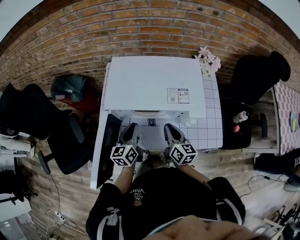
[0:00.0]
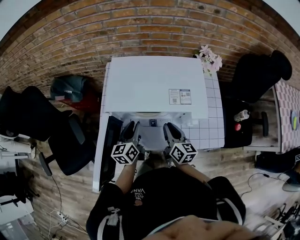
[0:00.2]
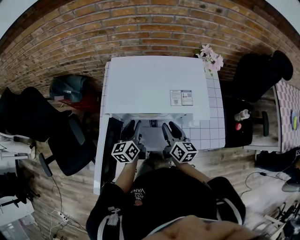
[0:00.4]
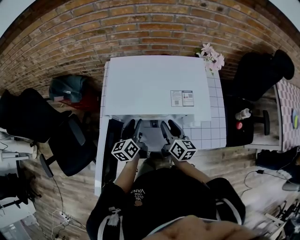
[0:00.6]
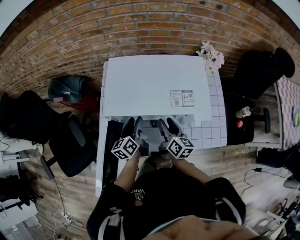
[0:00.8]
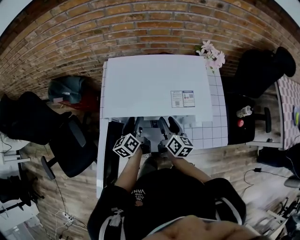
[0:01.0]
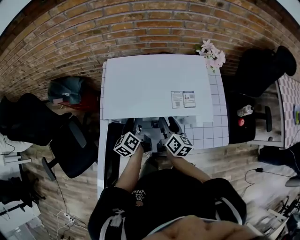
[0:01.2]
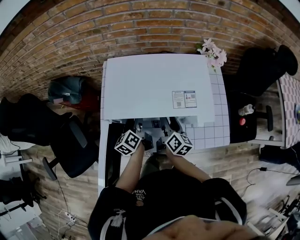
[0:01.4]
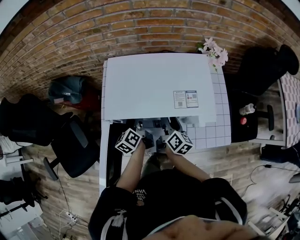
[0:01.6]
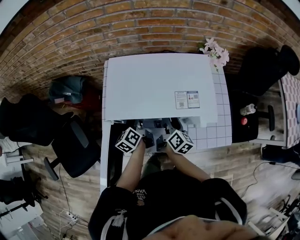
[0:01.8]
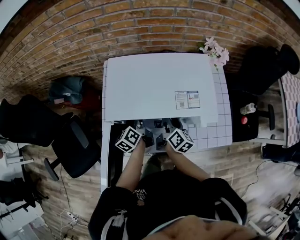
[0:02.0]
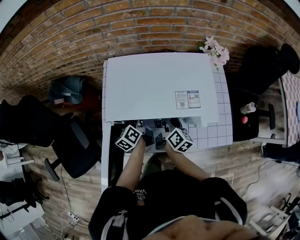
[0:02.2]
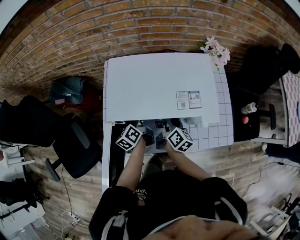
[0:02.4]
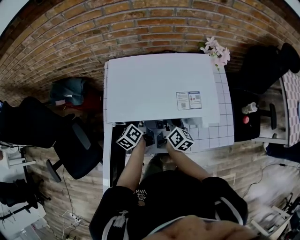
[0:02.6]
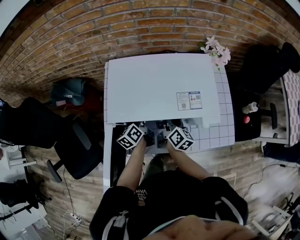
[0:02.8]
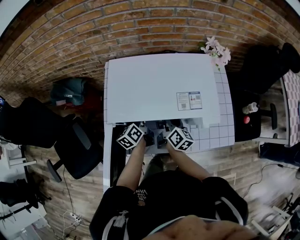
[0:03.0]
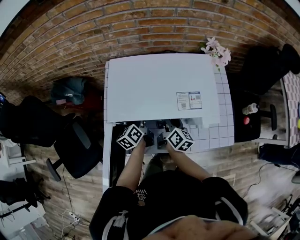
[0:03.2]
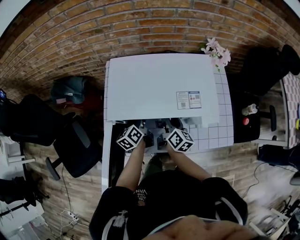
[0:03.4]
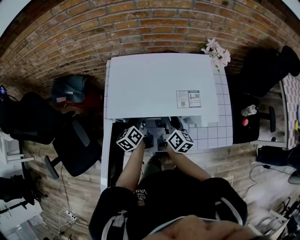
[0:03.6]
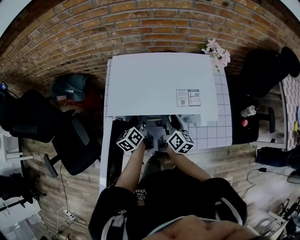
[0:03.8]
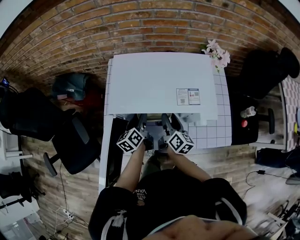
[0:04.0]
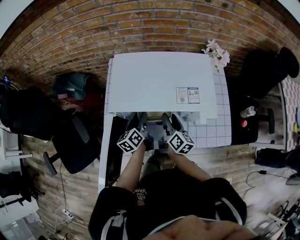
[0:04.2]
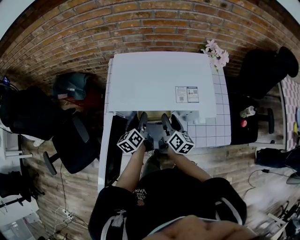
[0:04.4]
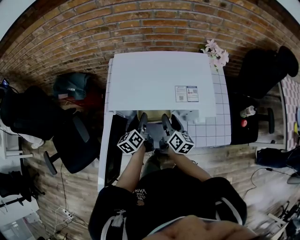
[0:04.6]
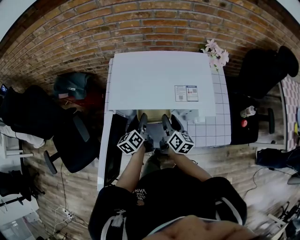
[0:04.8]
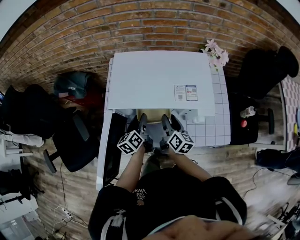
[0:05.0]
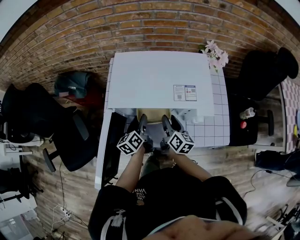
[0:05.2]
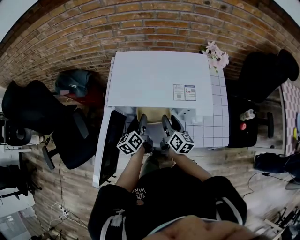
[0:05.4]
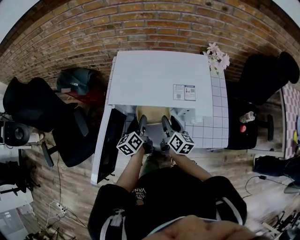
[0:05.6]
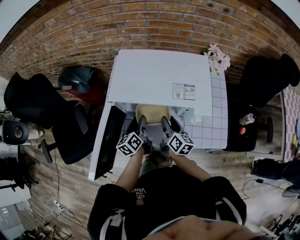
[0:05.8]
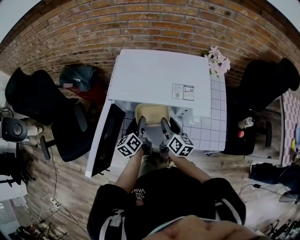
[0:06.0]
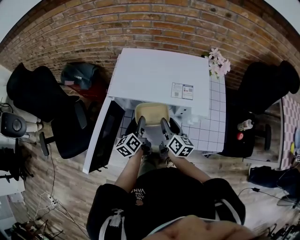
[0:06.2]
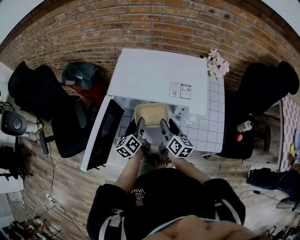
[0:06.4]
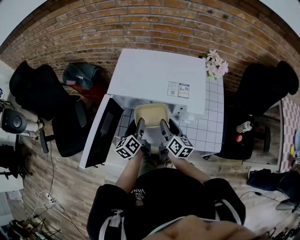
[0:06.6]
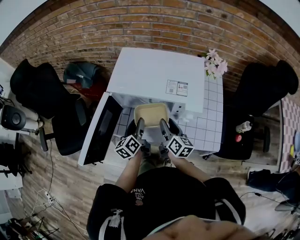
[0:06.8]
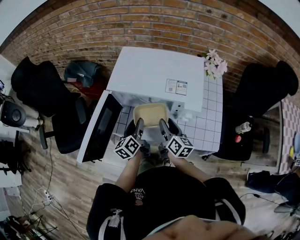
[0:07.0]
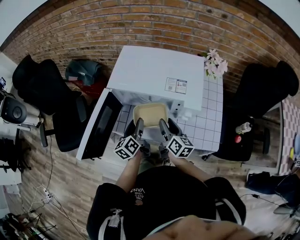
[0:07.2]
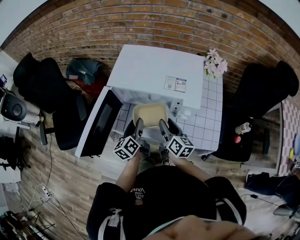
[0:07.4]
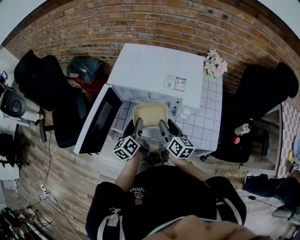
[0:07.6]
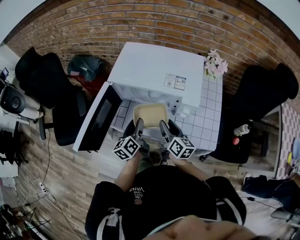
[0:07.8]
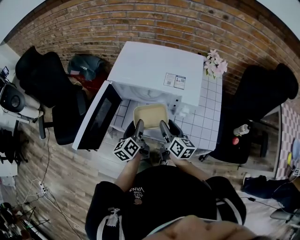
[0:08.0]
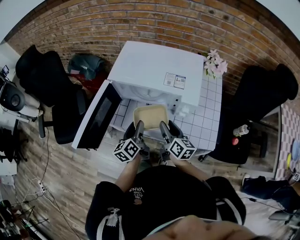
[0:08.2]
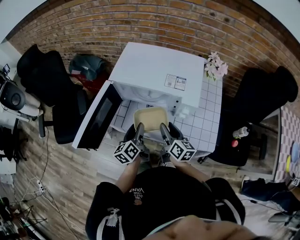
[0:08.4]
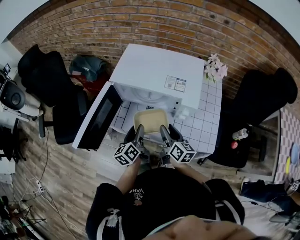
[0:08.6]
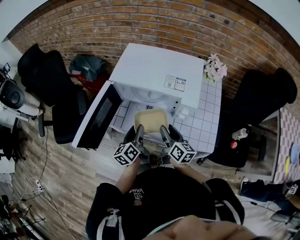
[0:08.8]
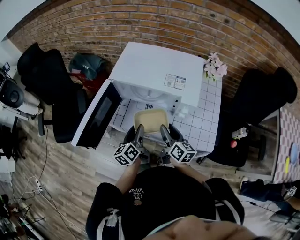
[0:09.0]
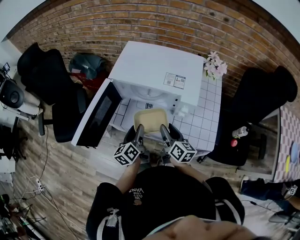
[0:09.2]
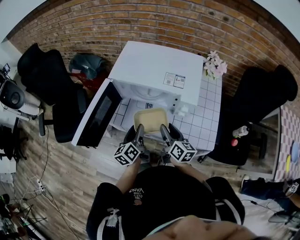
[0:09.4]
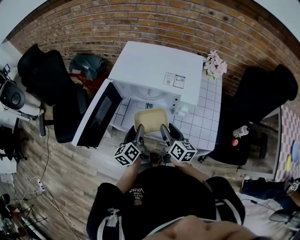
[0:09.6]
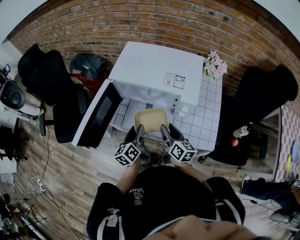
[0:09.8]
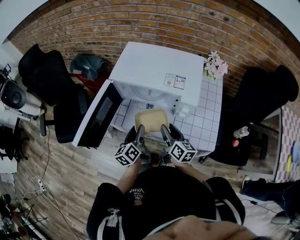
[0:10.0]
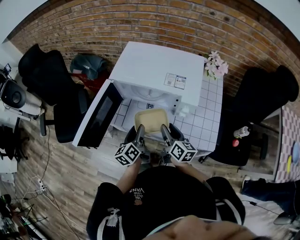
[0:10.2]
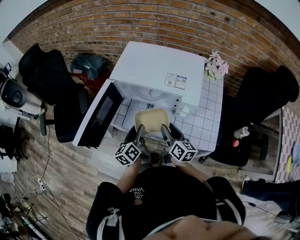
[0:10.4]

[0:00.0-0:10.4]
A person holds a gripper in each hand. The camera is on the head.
0:00.0 to 0:01.4: Both grippers travel together forward, roughly 10 cm. The right gripper turns by approximately 20 degrees, and opens its fingers, while the left gripper rotates roughly 20 degrees, and opens.
0:01.4 to 0:03.0: There are only small adjustments of the grippers.
0:03.0 to 0:04.4: The left gripper moves backward, some 5 cm. The right gripper shifts by about 5 cm.
0:04.4 to 0:06.0: The left gripper is displaced backward by approximately 5 cm.
0:06.0 to 0:07.4: The two grippers go about 5 cm backward.
0:07.4 to 0:09.0: The left gripper is displaced backward by roughly 5 cm.
0:09.0 to 0:10.4: The two grippers keep their place.

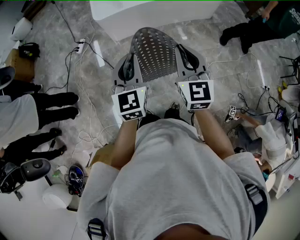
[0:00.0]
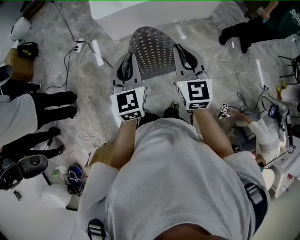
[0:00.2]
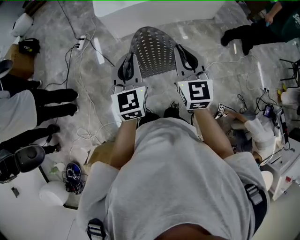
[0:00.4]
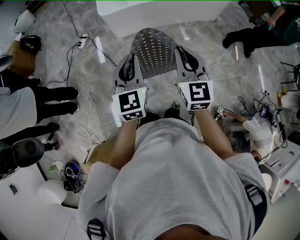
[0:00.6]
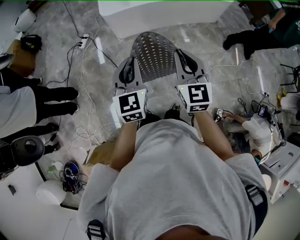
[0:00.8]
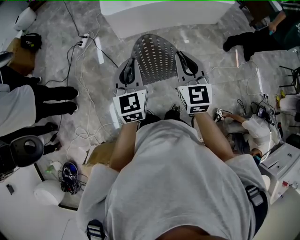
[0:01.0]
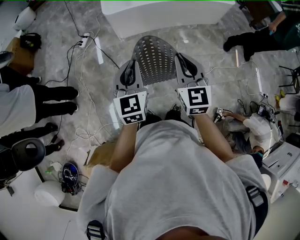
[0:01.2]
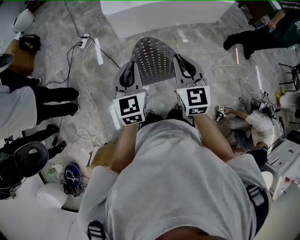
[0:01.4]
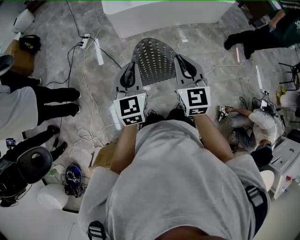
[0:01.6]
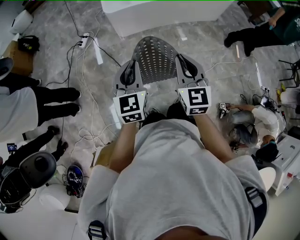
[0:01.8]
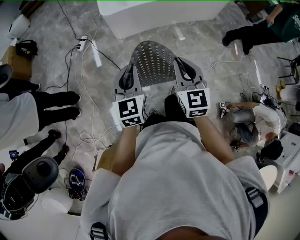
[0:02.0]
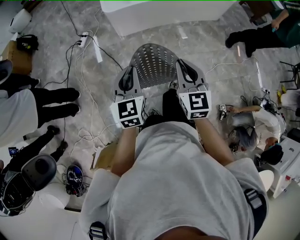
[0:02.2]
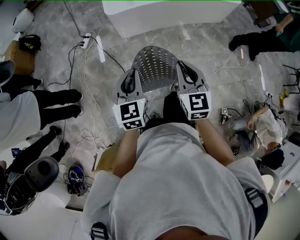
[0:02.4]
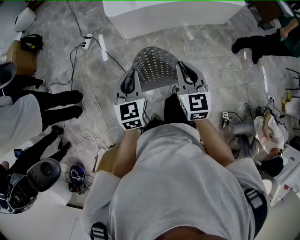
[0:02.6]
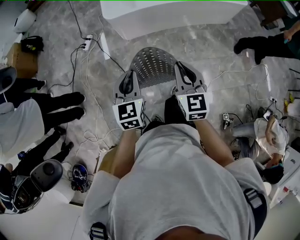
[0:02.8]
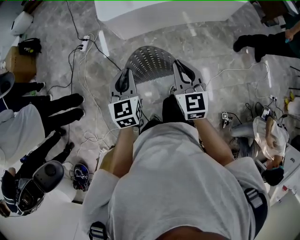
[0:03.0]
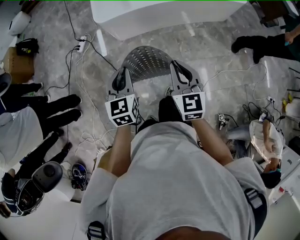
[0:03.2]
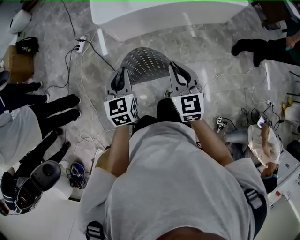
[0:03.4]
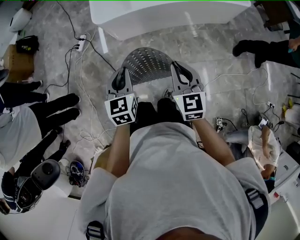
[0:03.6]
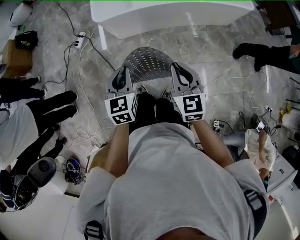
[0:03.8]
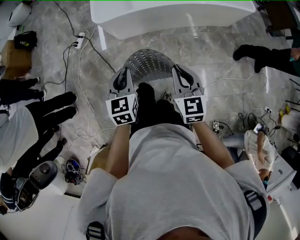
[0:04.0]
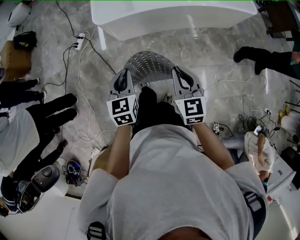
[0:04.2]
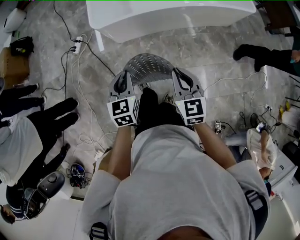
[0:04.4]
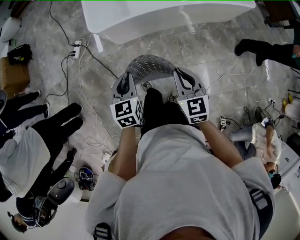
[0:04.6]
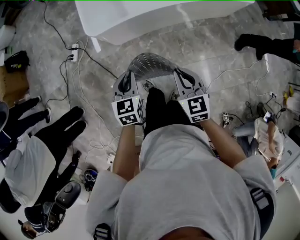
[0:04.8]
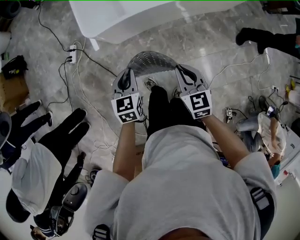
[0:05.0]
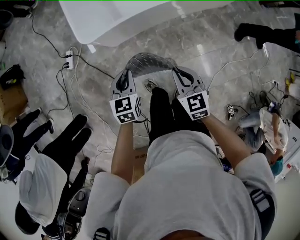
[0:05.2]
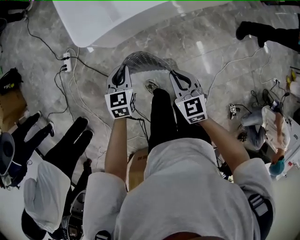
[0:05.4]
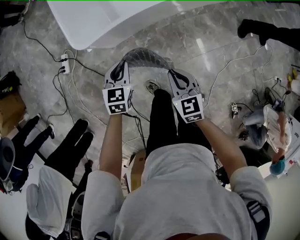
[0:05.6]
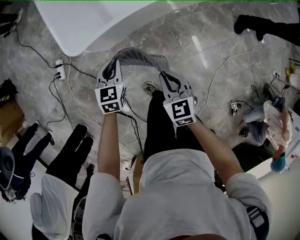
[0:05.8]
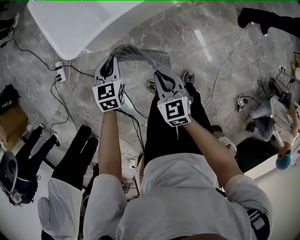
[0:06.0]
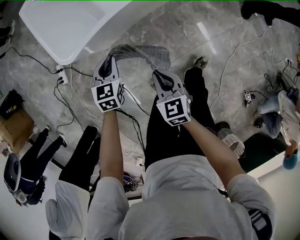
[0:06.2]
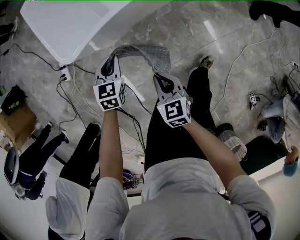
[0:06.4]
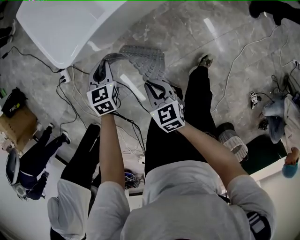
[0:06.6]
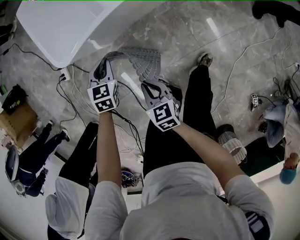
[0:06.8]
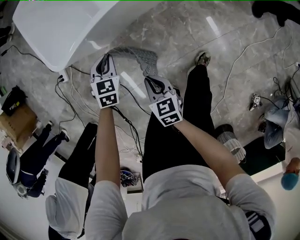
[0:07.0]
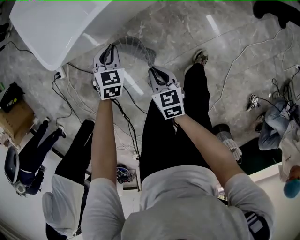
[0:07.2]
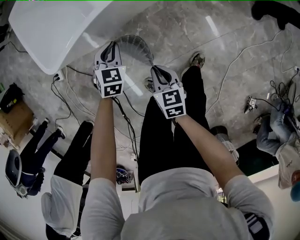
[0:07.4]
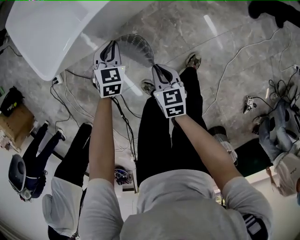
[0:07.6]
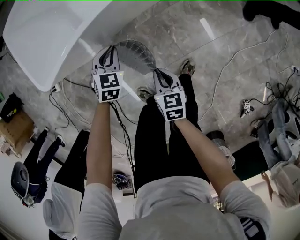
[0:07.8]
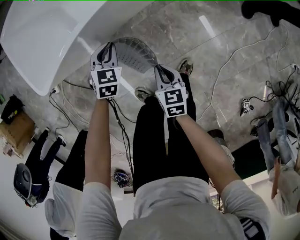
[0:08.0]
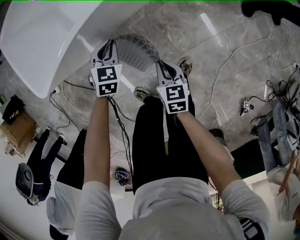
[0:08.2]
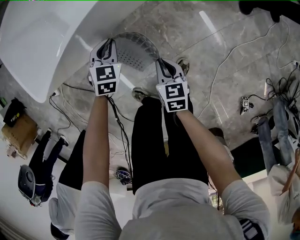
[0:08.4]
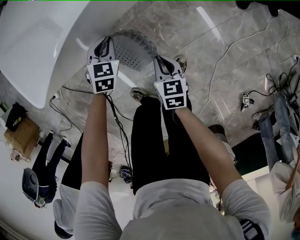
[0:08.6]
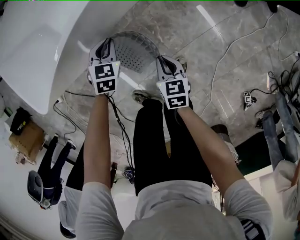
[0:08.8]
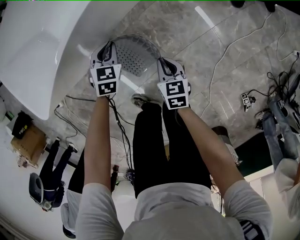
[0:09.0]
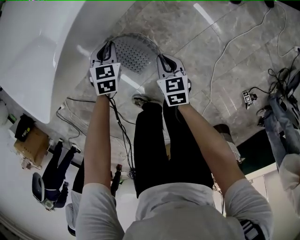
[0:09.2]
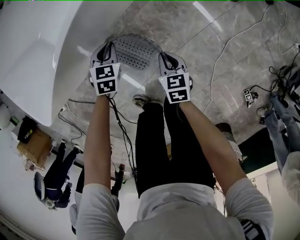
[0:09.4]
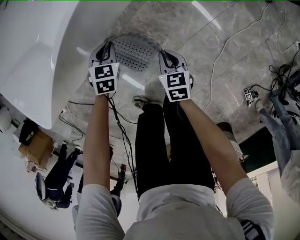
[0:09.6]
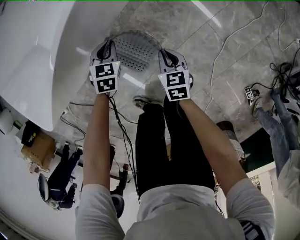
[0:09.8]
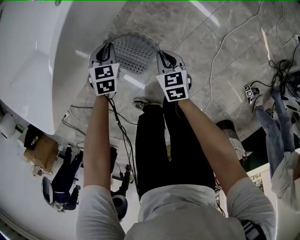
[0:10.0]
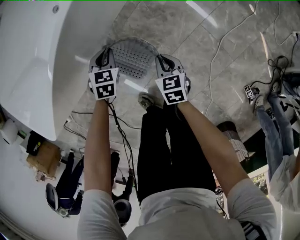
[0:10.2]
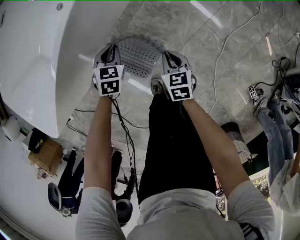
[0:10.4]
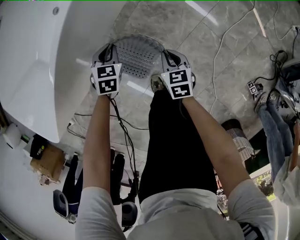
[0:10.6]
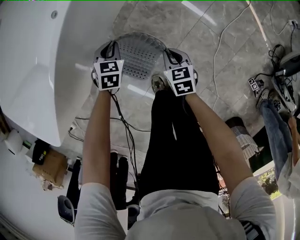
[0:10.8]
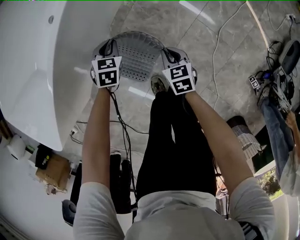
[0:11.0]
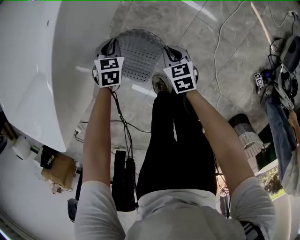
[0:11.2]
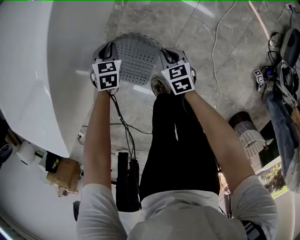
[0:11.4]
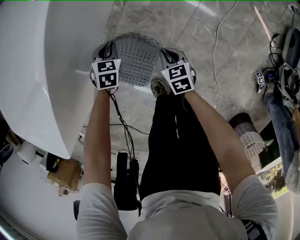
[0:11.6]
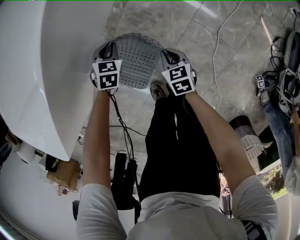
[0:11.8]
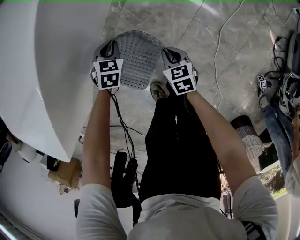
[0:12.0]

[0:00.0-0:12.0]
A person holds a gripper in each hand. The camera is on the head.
0:00.0 to 0:01.6: Both grippers travel together to the left, roughly 10 cm.
0:01.6 to 0:03.0: Both grippers travel together forward and downward, some 15 cm.
0:03.0 to 0:04.4: The two grippers go roughly 15 cm forward and downward.
0:04.4 to 0:06.0: The right gripper is displaced downward, forward and to the left by some 30 cm, while the left gripper moves forward and downward, about 35 cm, and turns by about 30 degrees.
0:06.0 to 0:07.6: The left gripper is displaced to the right and downward by some 20 cm, and swivels about 20 degrees; the right gripper goes some 20 cm downward and to the right, and rotates some 20 degrees.
0:07.6 to 0:09.0: The right gripper heads to the right and downward, covering roughly 20 cm. The left gripper moves to the right and forward, approximately 20 cm.
0:09.0 to 0:10.4: Both grippers travel together to the right and downward, approximately 10 cm.
0:10.4 to 0:12.0: The left gripper is displaced downward, to the right and forward by about 15 cm. The right gripper is displaced downward and to the right by some 10 cm.

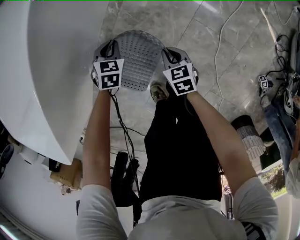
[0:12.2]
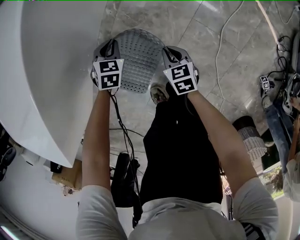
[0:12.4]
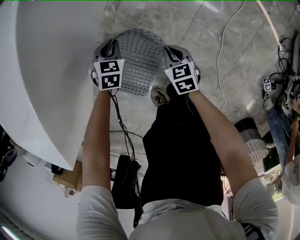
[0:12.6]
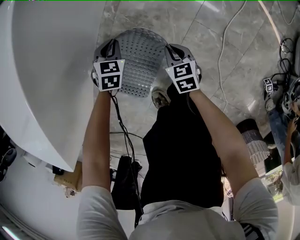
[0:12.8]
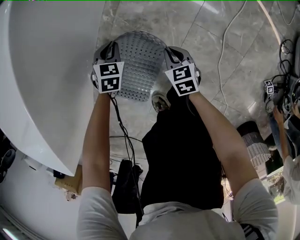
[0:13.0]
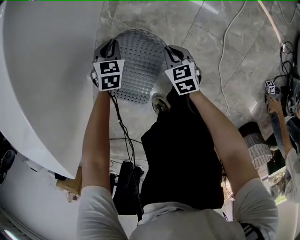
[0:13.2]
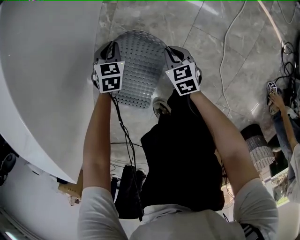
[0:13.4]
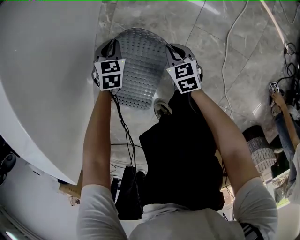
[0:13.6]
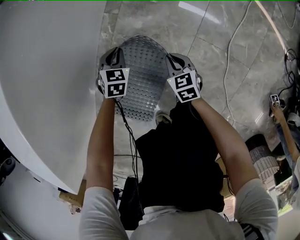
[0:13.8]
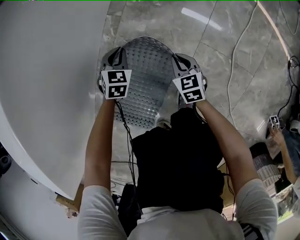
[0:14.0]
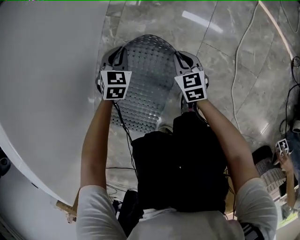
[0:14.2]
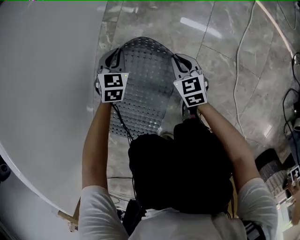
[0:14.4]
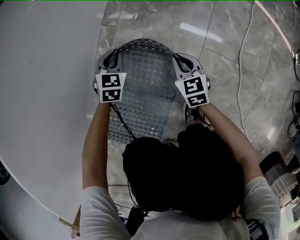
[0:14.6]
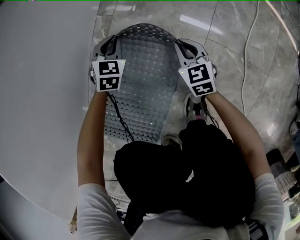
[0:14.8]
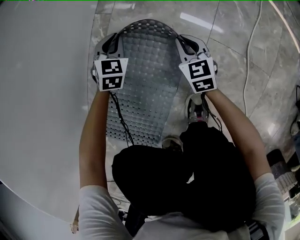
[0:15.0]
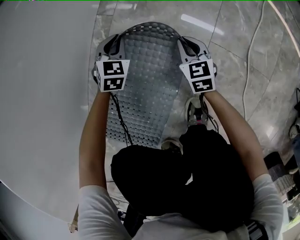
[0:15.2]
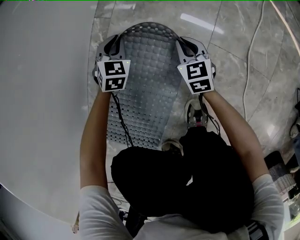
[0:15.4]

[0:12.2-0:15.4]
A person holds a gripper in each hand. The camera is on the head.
0:12.2 to 0:13.8: Both grippers move downward and forward, approximately 15 cm.
0:13.8 to 0:15.4: The two grippers go approximately 15 cm downward and forward.
